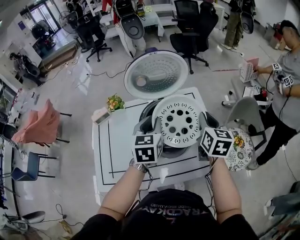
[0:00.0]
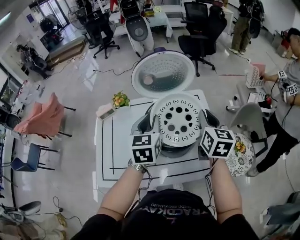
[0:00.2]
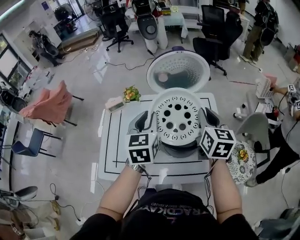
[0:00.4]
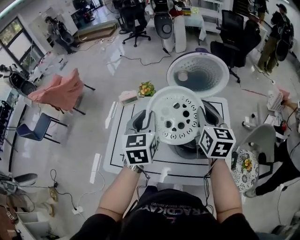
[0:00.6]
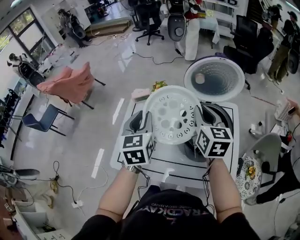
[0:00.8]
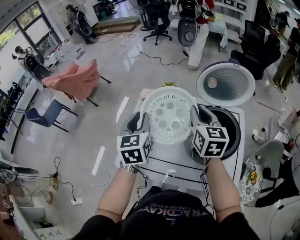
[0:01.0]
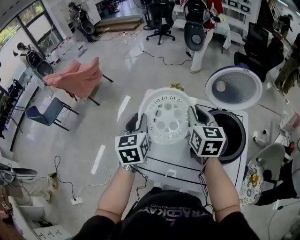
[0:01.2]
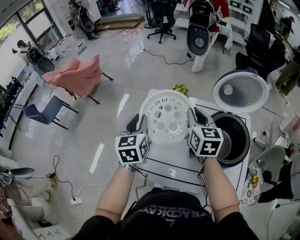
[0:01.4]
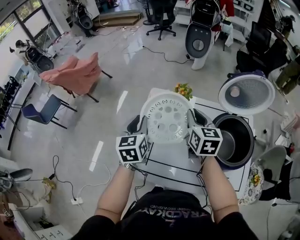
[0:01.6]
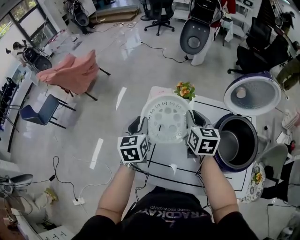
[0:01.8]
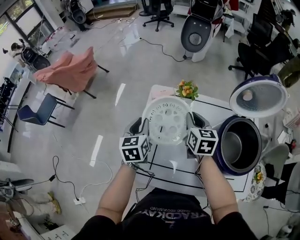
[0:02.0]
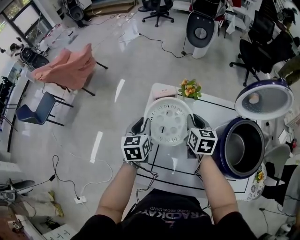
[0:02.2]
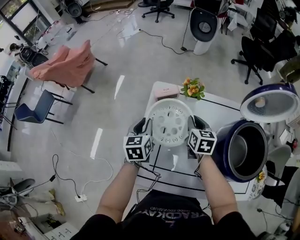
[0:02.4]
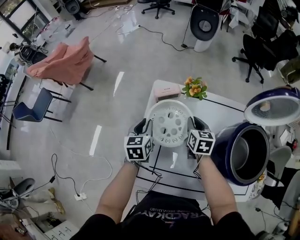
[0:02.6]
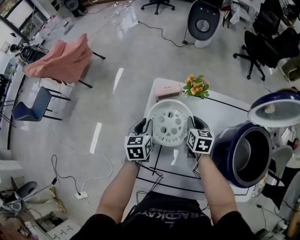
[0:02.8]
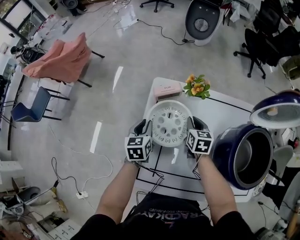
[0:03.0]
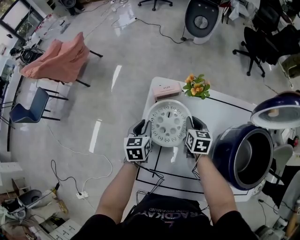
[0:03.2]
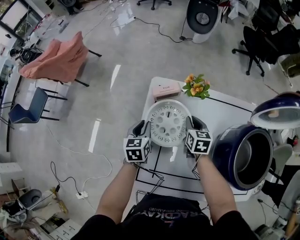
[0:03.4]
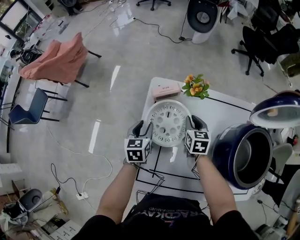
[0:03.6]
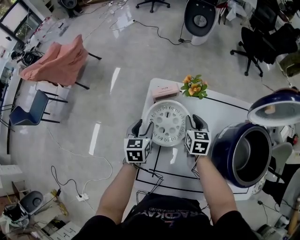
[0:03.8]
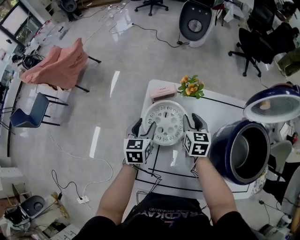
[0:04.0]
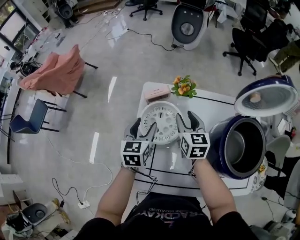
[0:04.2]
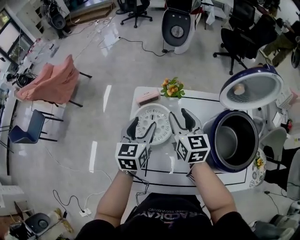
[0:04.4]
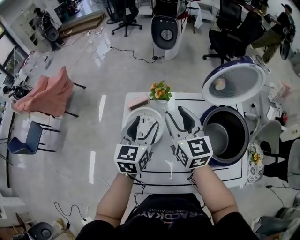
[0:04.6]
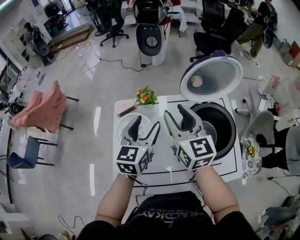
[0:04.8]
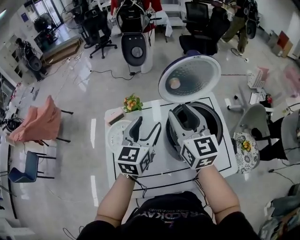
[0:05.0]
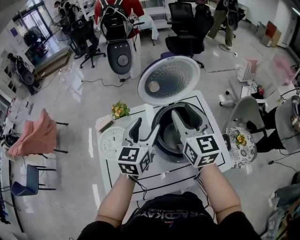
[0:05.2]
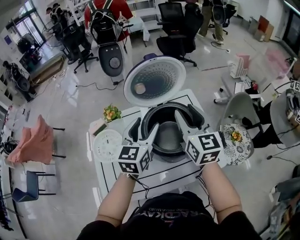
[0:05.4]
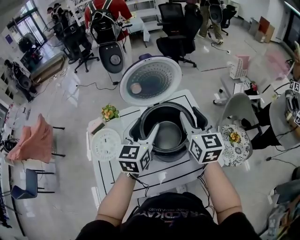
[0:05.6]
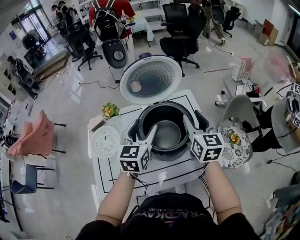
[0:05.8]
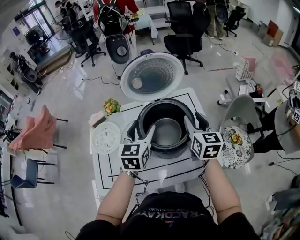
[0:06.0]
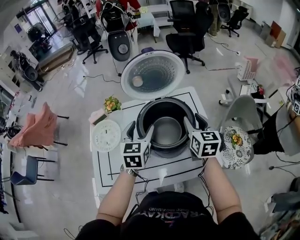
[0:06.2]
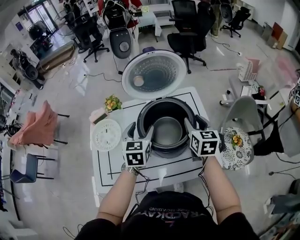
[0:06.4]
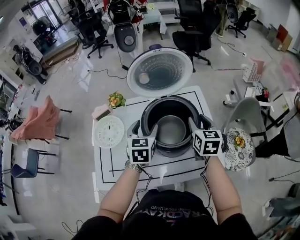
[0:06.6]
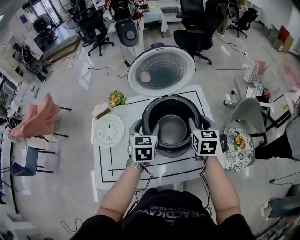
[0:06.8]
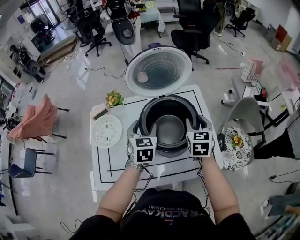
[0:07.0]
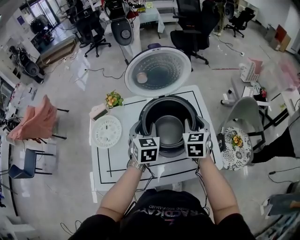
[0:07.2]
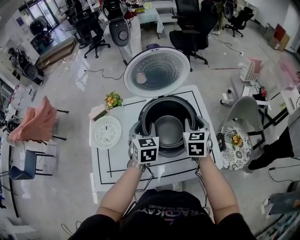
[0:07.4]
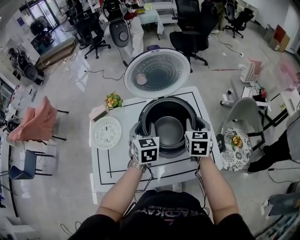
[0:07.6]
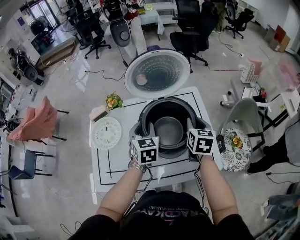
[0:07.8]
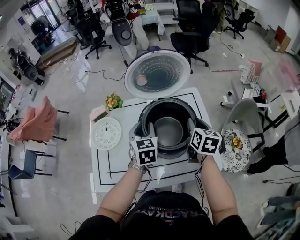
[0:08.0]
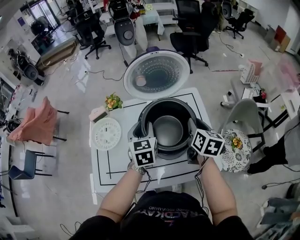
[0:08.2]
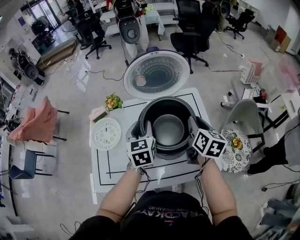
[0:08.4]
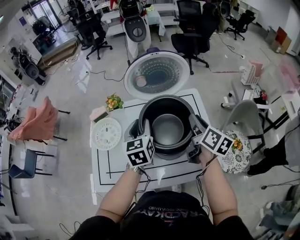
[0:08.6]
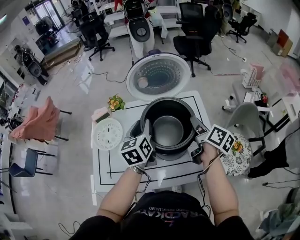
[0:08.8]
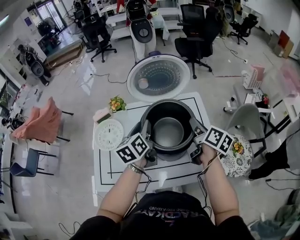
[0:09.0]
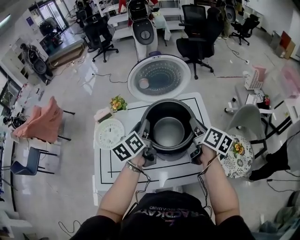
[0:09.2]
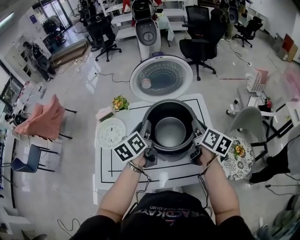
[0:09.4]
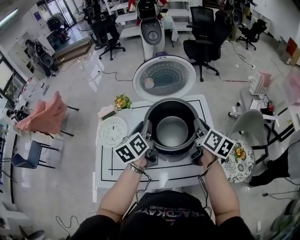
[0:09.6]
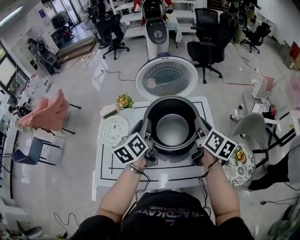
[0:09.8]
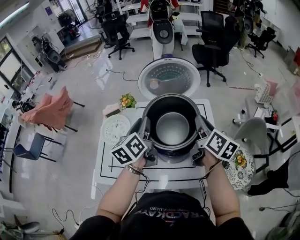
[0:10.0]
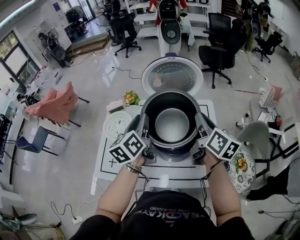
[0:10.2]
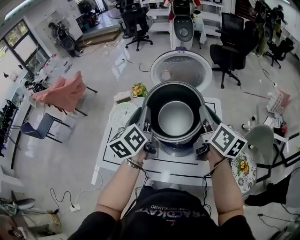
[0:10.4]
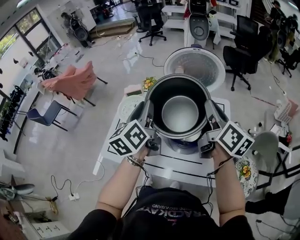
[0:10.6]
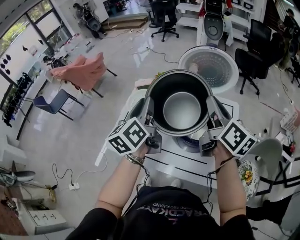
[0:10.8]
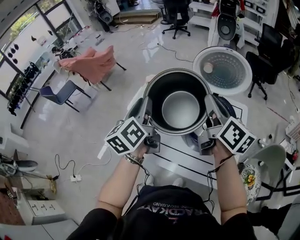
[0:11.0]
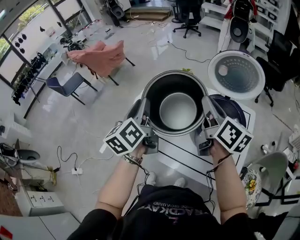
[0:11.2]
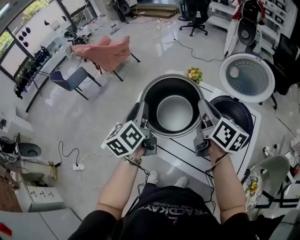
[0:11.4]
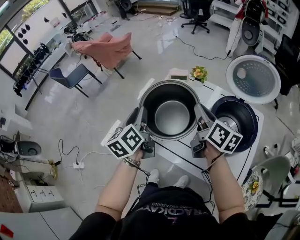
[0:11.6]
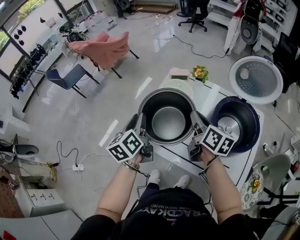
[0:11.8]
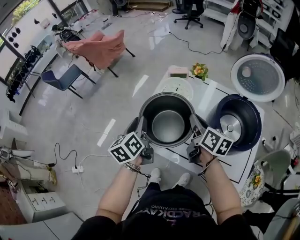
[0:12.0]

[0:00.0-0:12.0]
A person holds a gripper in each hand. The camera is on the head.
0:00.0 to 0:01.6: The right gripper moves some 40 cm, and turns by some 30 degrees. Meanwhile the left gripper moves about 40 cm, and rotates approximately 30 degrees.
0:01.6 to 0:03.0: The right gripper shifts some 25 cm downward, and rotates some 20 degrees, while the left gripper travels downward and forward by some 25 cm.
0:03.0 to 0:04.4: The right gripper moves upward, about 20 cm, swivels about 20 degrees, and opens its fingers. Meanwhile the left gripper is displaced upward and to the right by about 15 cm, and opens up.
0:04.4 to 0:06.0: The left gripper ends up roughly 35 cm from where it was, while the right gripper ends up some 40 cm from where it was, and rotates some 20 degrees.
0:06.0 to 0:07.6: The two grippers go about 5 cm downward. The left gripper changes its angle by about 20 degrees, and closes up.
0:07.6 to 0:09.0: The left gripper rotates approximately 40 degrees. Meanwhile the right gripper twists approximately 50 degrees clockwise, seen from behind.
0:09.0 to 0:10.4: The two grippers go approximately 10 cm upward. The right gripper rotates about 20 degrees.
0:10.4 to 0:12.0: The right gripper ends up approximately 35 cm from where it was, and rotates about 30 degrees; the left gripper changes place by about 35 cm, and swivels some 30 degrees.

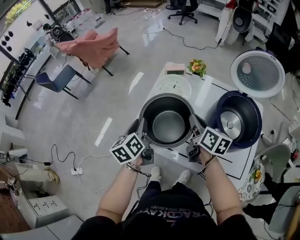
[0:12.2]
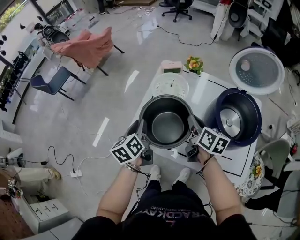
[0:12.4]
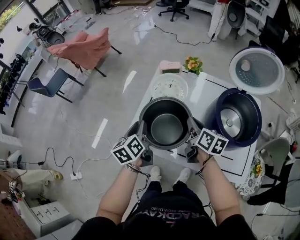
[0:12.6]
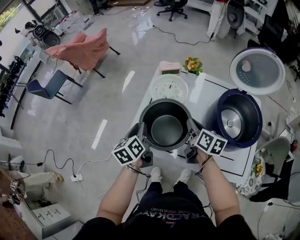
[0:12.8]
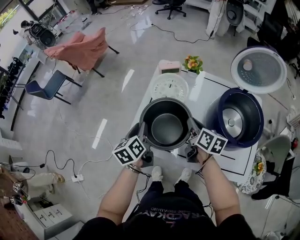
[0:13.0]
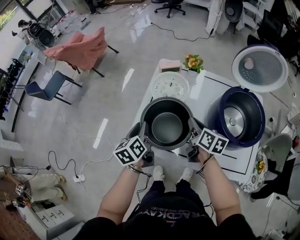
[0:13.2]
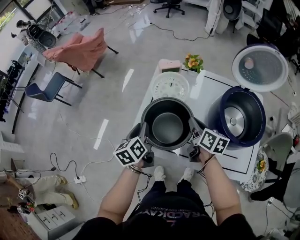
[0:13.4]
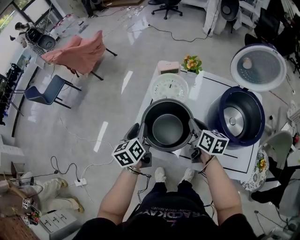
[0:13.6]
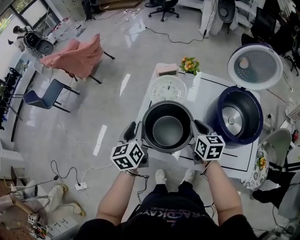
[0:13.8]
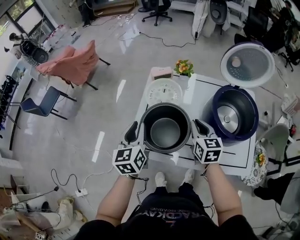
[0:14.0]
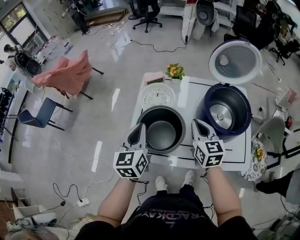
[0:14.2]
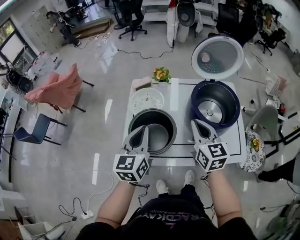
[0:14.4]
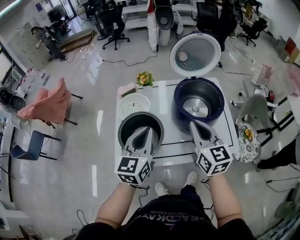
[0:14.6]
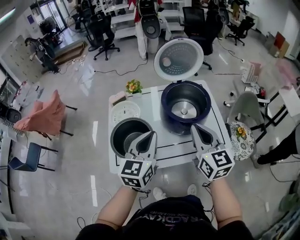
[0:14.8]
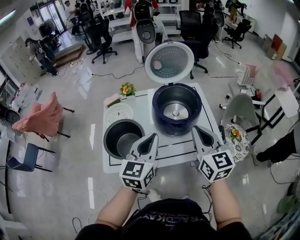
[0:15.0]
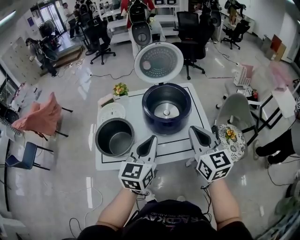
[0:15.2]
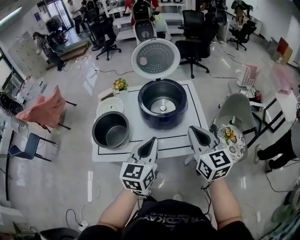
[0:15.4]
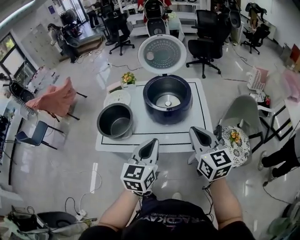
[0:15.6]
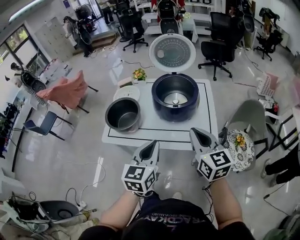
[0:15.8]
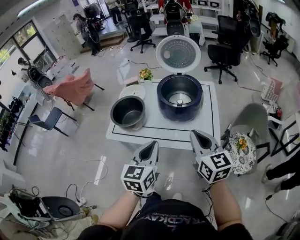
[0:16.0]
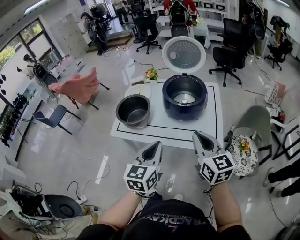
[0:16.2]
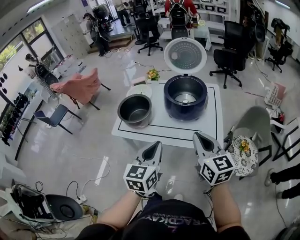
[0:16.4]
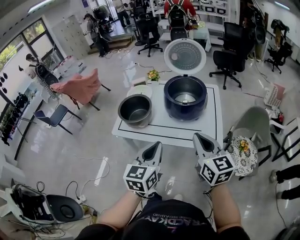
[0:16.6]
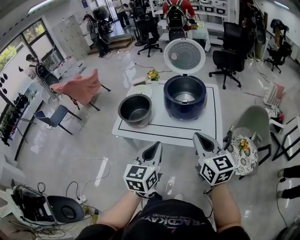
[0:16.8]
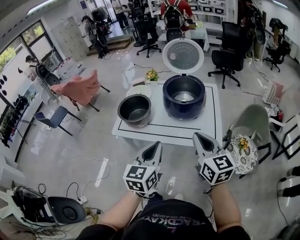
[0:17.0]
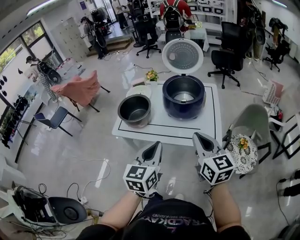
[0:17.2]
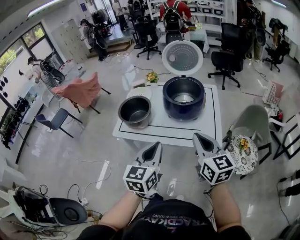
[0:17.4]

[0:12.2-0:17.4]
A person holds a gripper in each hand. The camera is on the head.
0:12.2 to 0:14.0: The right gripper changes its angle by some 30 degrees; the left gripper ends up some 5 cm from where it was, and changes its angle by roughly 30 degrees.
0:14.0 to 0:15.6: The right gripper shifts by roughly 40 cm, while the left gripper shifts by some 40 cm, and rotates approximately 30 degrees.
0:15.6 to 0:17.4: Both grippers move backward, some 10 cm.

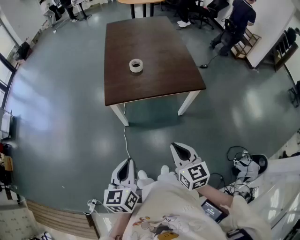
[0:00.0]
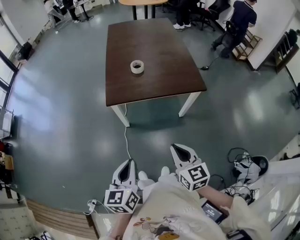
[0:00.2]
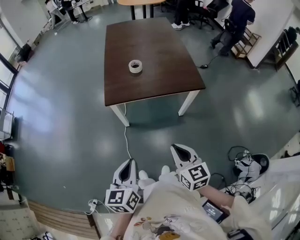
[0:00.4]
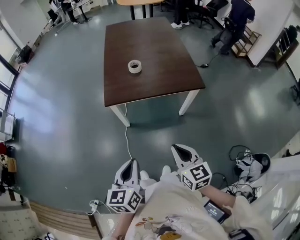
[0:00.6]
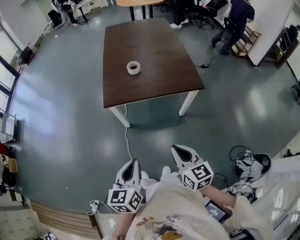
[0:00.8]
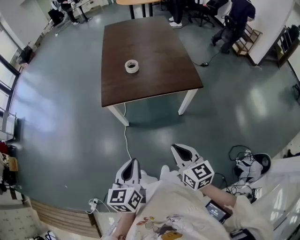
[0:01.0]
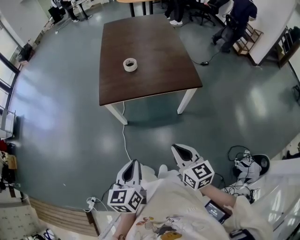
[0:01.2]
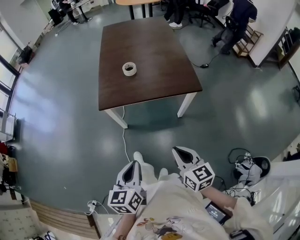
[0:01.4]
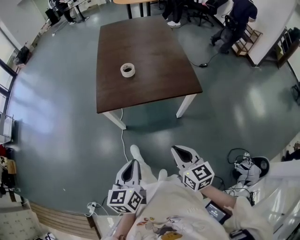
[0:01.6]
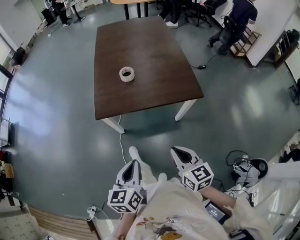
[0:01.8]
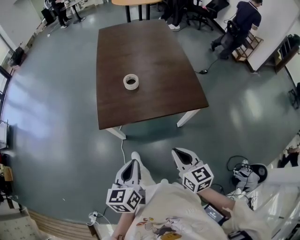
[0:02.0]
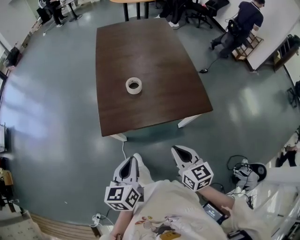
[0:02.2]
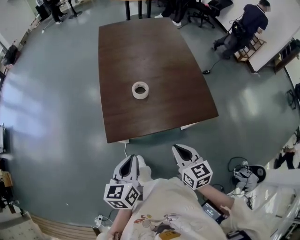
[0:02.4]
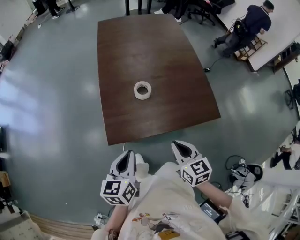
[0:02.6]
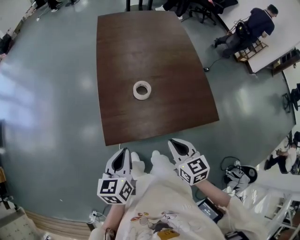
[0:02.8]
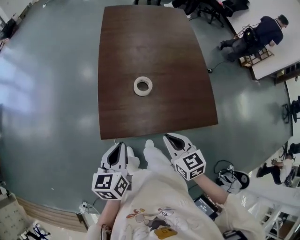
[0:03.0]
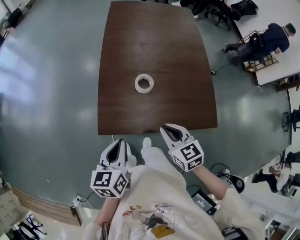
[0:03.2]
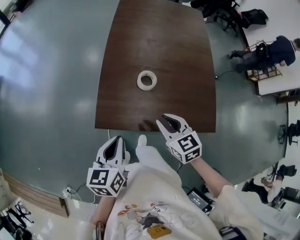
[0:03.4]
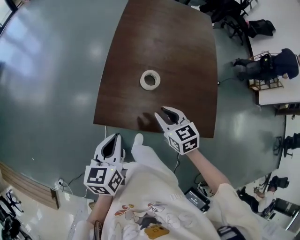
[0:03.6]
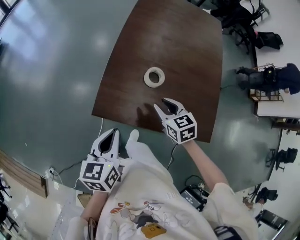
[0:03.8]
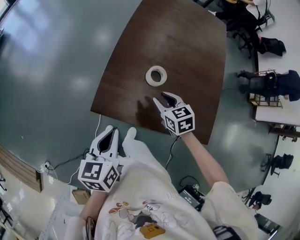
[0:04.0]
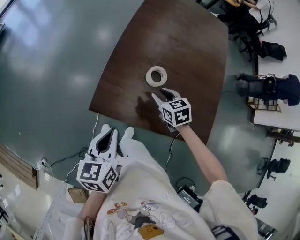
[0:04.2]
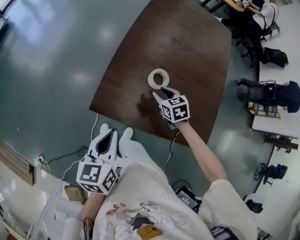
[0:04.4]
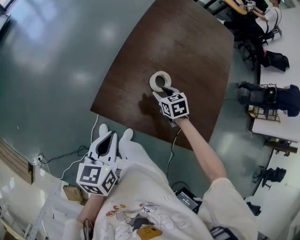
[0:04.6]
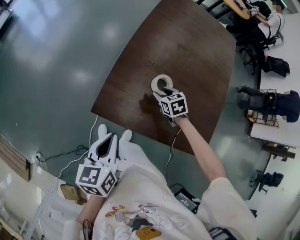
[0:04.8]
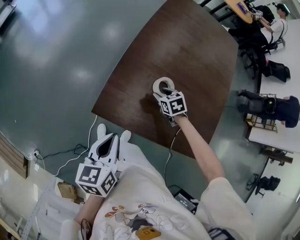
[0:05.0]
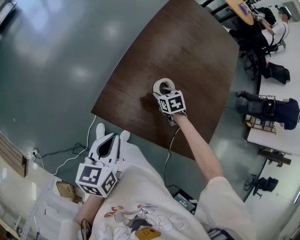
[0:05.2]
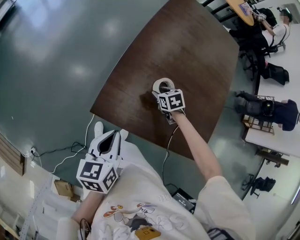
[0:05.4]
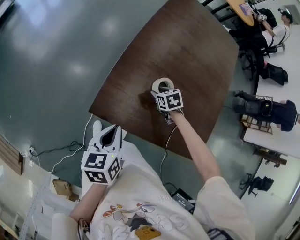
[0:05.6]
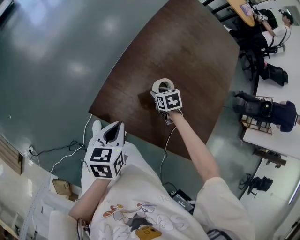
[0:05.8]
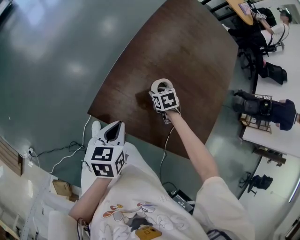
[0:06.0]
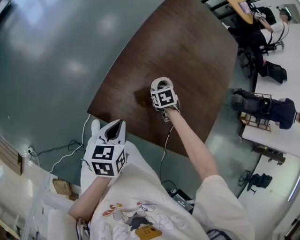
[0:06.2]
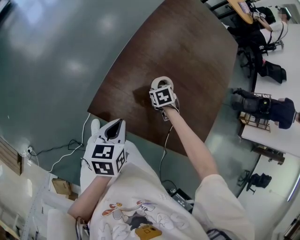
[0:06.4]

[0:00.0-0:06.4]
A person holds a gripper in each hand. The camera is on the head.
0:00.0 to 0:01.6: The two grippers go about 10 cm to the right.
0:01.6 to 0:03.2: The two grippers travel together, forward, roughly 40 cm. The right gripper rotates approximately 20 degrees.
0:03.2 to 0:04.8: The right gripper travels forward and downward by approximately 30 cm, swivels roughly 30 degrees, and opens up; the left gripper shifts roughly 5 cm downward, and turns by about 20 degrees.
0:04.8 to 0:06.4: Both grippers travel together downward, roughly 5 cm. The right gripper closes up.
